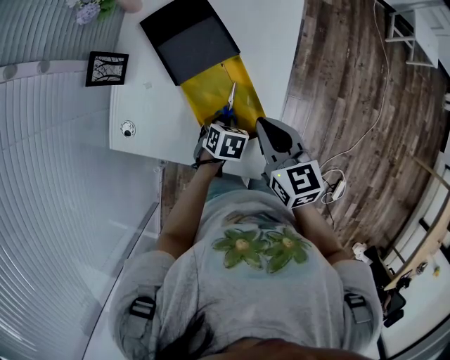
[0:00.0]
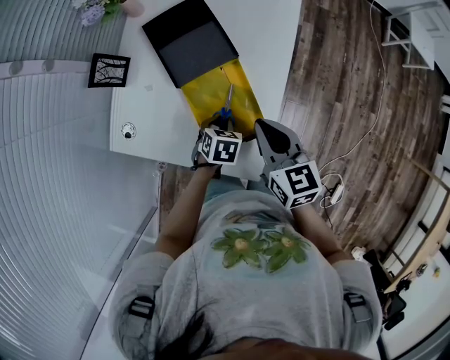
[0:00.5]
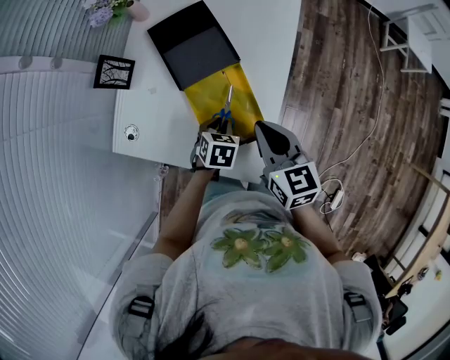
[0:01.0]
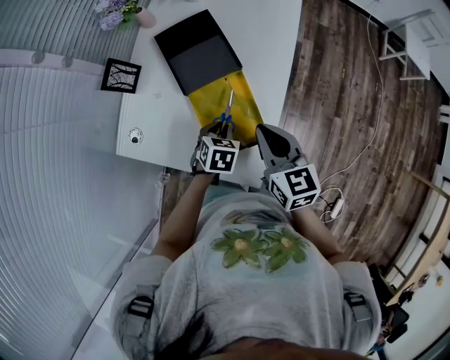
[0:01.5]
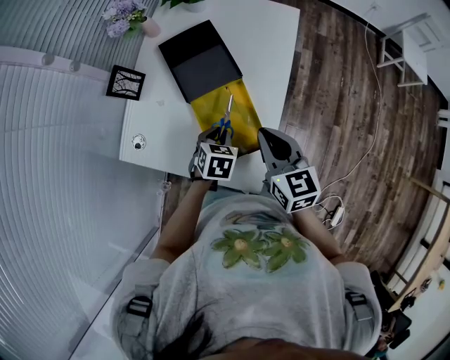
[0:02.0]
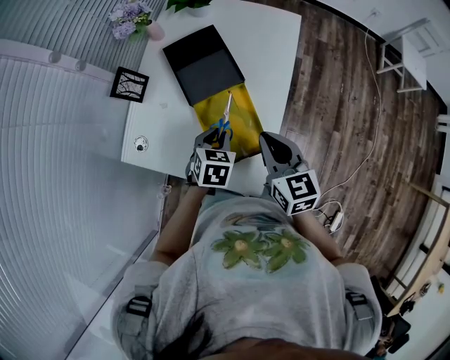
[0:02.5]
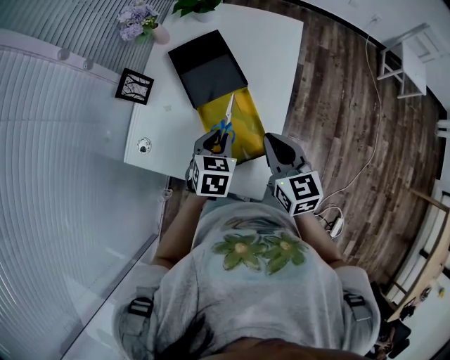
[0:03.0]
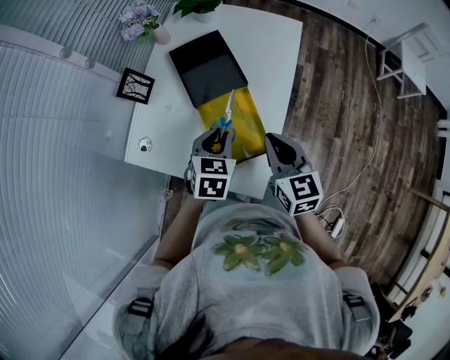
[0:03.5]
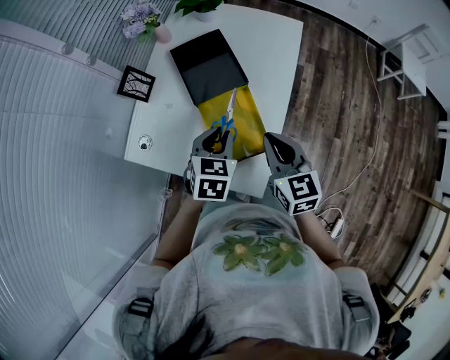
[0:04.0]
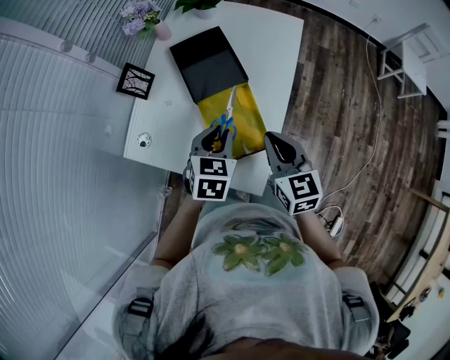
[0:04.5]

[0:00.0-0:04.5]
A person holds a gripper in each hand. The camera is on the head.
0:00.0 to 0:02.0: The left gripper shifts approximately 10 cm upward.
0:02.0 to 0:04.5: The left gripper heads upward, covering approximately 10 cm.

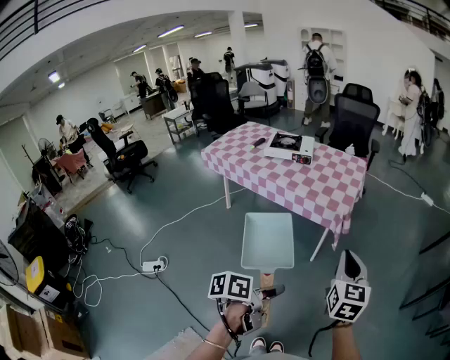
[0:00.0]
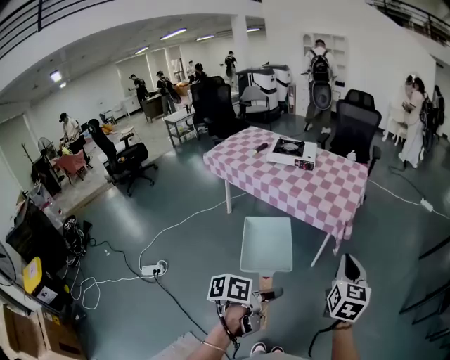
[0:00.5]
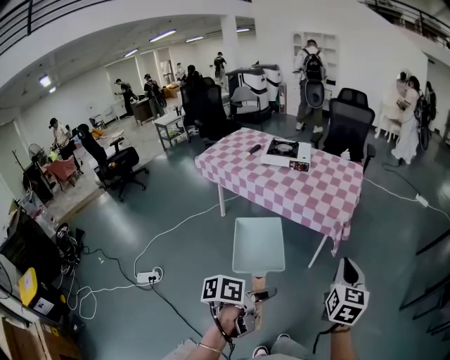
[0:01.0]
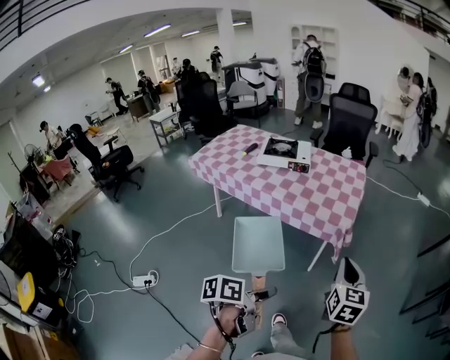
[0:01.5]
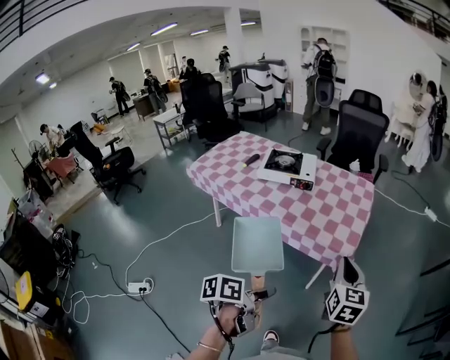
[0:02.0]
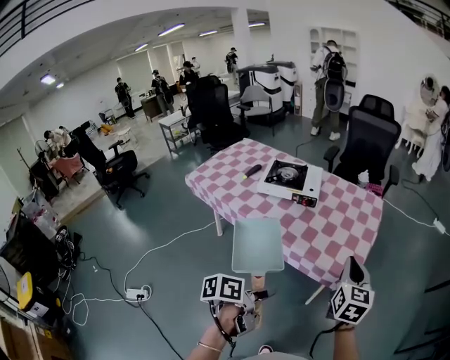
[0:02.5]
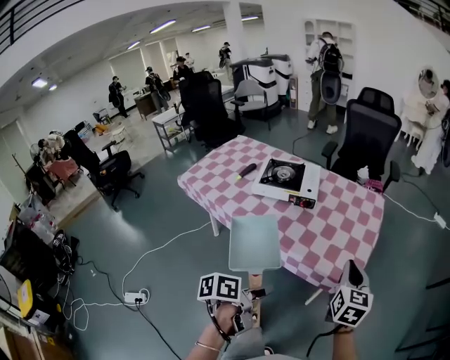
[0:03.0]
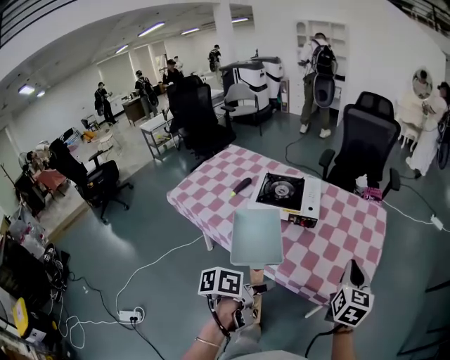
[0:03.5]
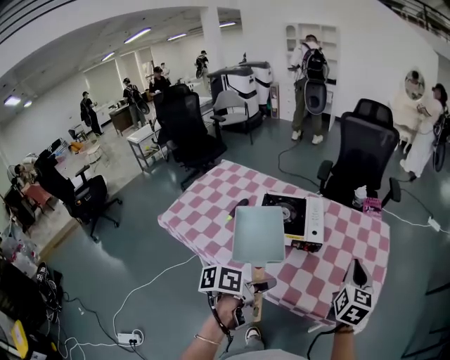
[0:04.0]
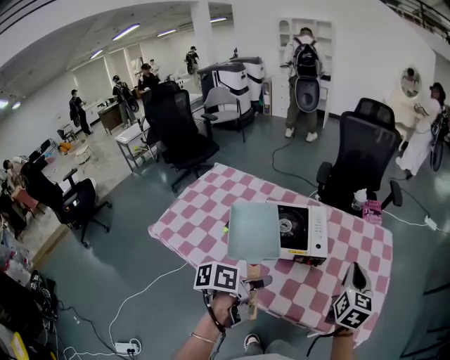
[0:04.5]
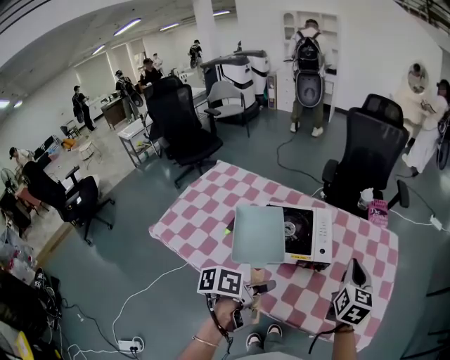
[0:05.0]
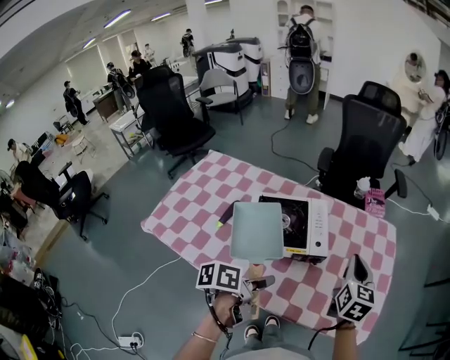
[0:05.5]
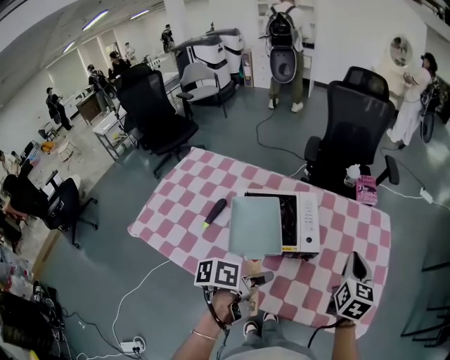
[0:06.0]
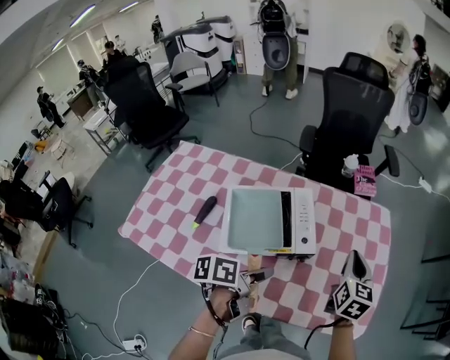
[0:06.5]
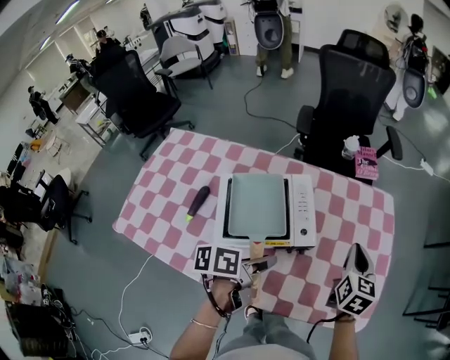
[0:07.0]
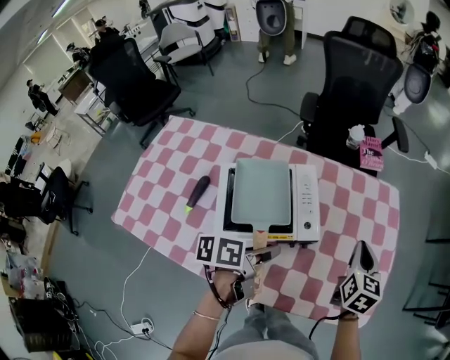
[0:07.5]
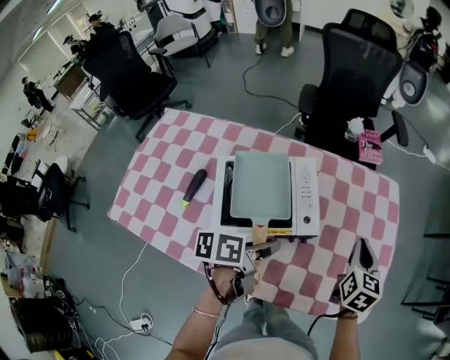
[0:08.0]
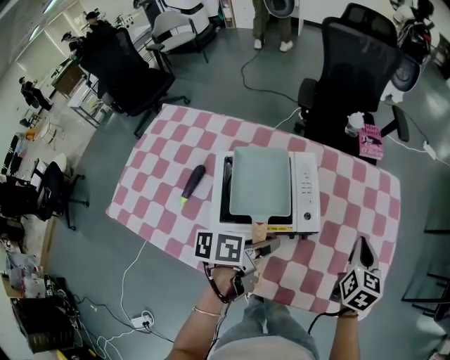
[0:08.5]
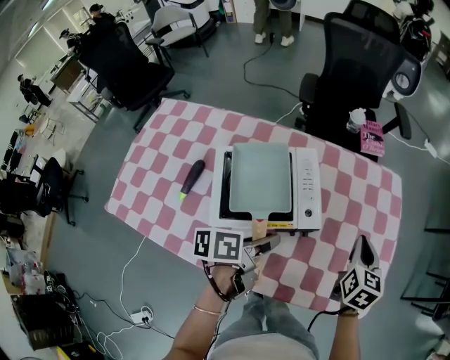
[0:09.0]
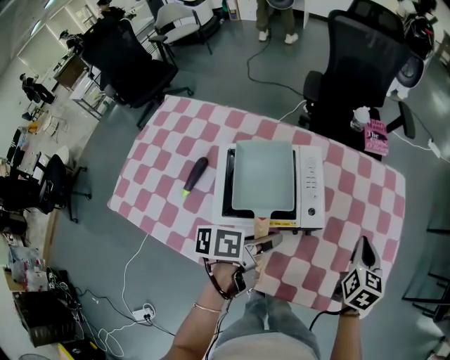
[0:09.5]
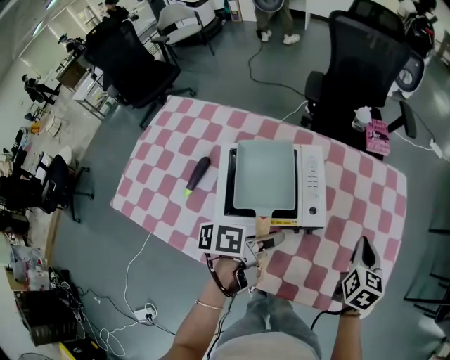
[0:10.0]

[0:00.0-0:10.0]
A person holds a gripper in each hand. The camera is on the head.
0:00.0 to 0:02.0: Both grippers travel together forward and to the left, roughly 25 cm.
0:02.0 to 0:04.0: The grippers both shift forward and to the left by about 40 cm.
0:04.0 to 0:06.0: Both grippers move forward and to the left, some 15 cm.
0:06.0 to 0:08.0: The right gripper goes about 10 cm downward. The left gripper is displaced forward by about 10 cm.
0:08.0 to 0:10.0: There are only small adjustments of the grippers.

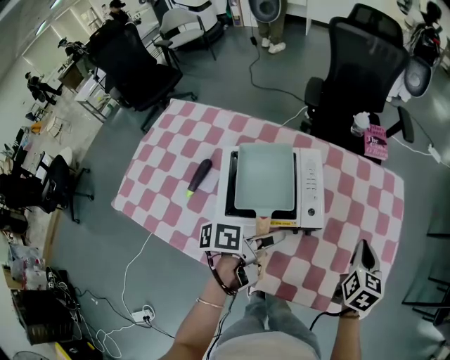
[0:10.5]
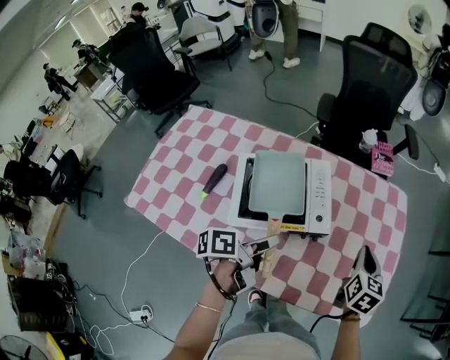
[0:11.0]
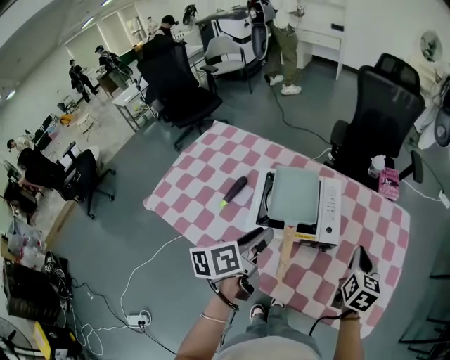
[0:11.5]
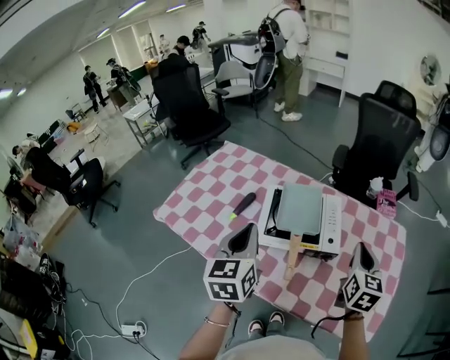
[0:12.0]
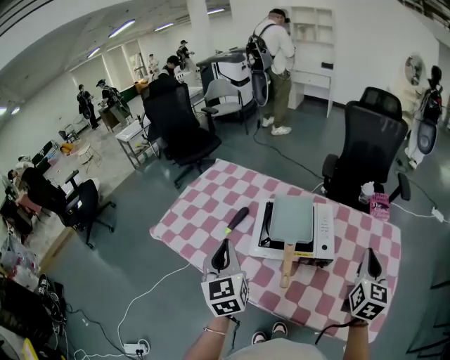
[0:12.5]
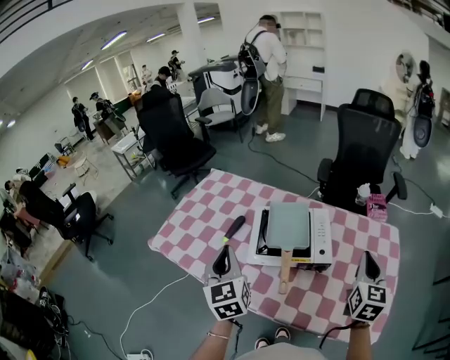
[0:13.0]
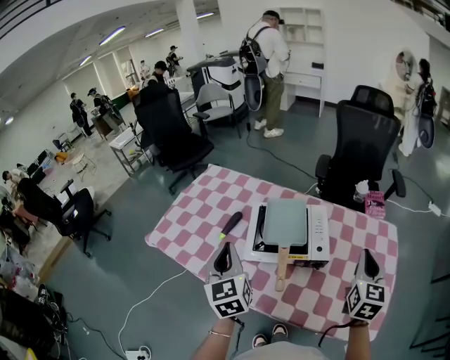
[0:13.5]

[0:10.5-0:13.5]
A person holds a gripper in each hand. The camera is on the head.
0:10.5 to 0:12.0: The left gripper goes about 20 cm upward, changes its angle by roughly 80 degrees, and closes up. The right gripper goes approximately 10 cm upward, and turns by roughly 20 degrees.
0:12.0 to 0:13.5: The right gripper ends up roughly 5 cm from where it was.

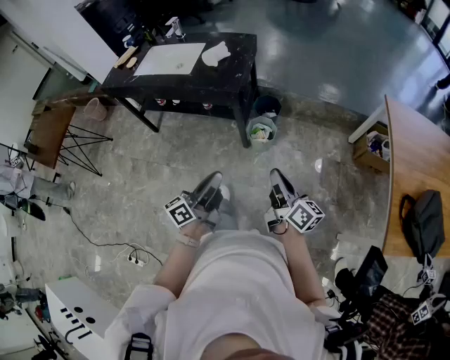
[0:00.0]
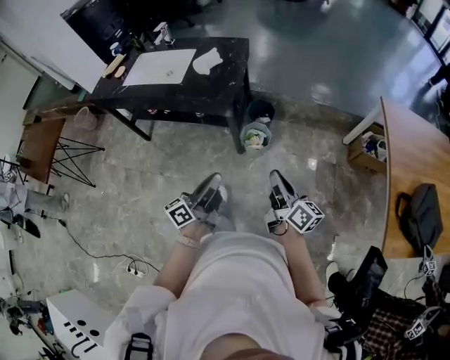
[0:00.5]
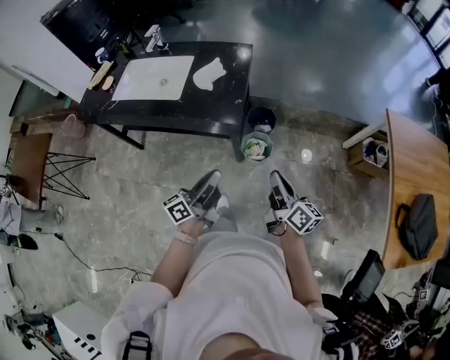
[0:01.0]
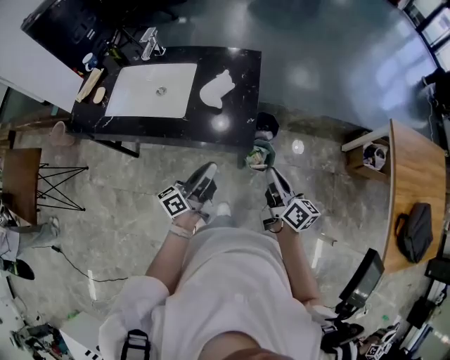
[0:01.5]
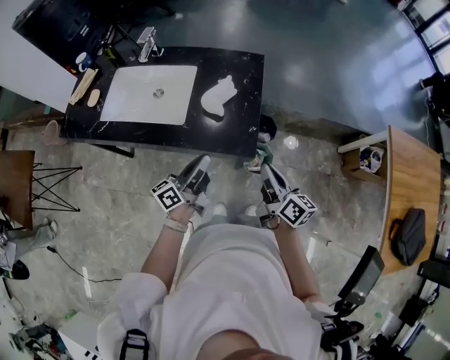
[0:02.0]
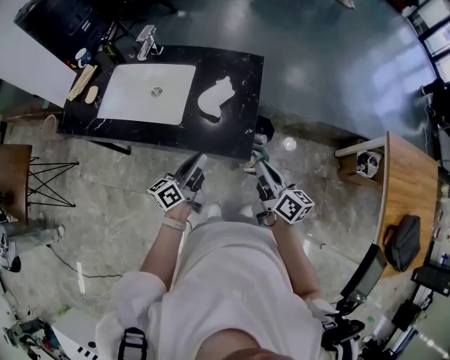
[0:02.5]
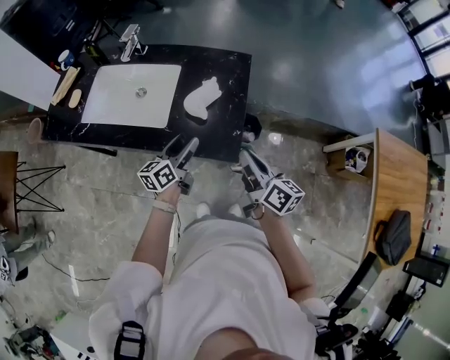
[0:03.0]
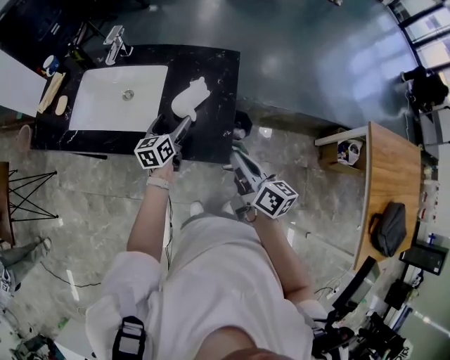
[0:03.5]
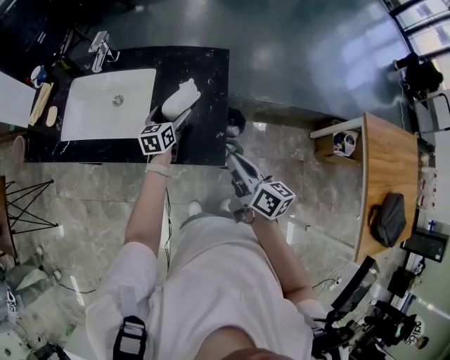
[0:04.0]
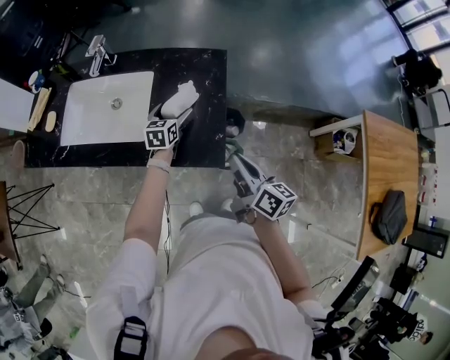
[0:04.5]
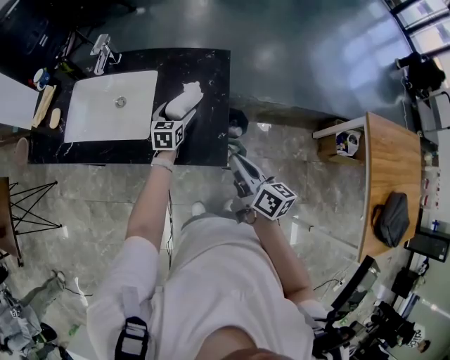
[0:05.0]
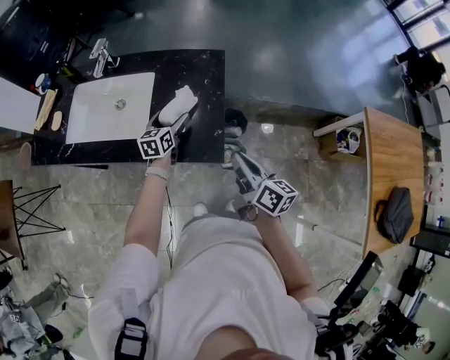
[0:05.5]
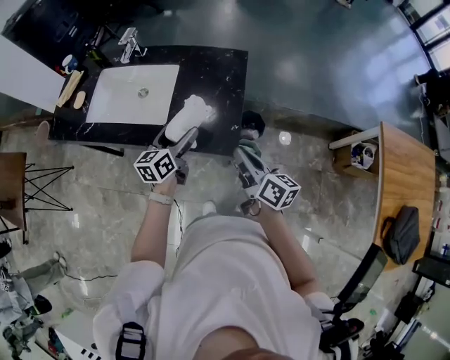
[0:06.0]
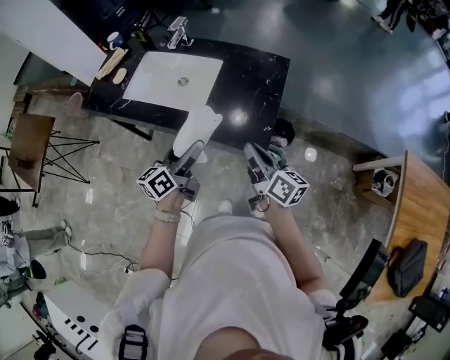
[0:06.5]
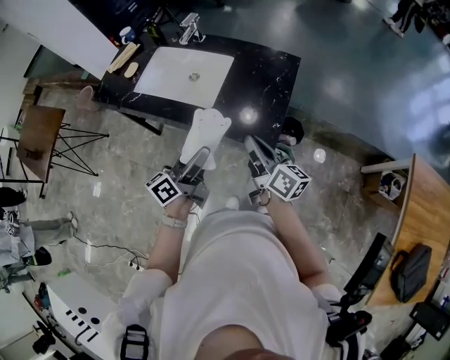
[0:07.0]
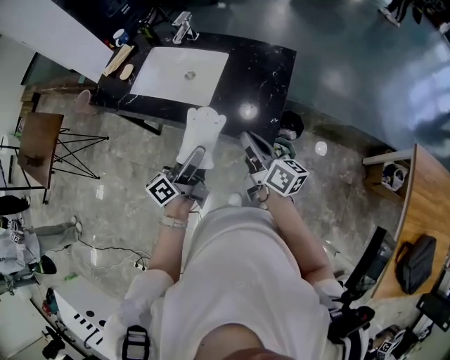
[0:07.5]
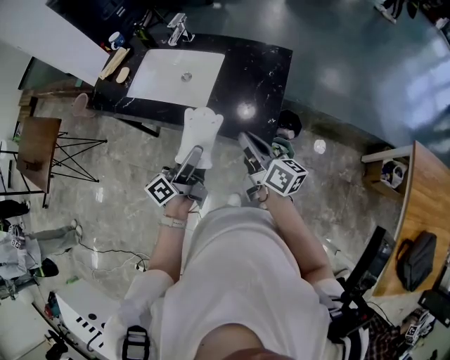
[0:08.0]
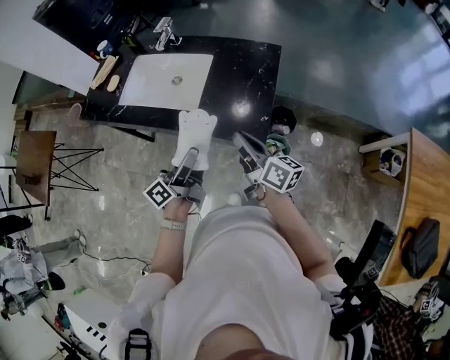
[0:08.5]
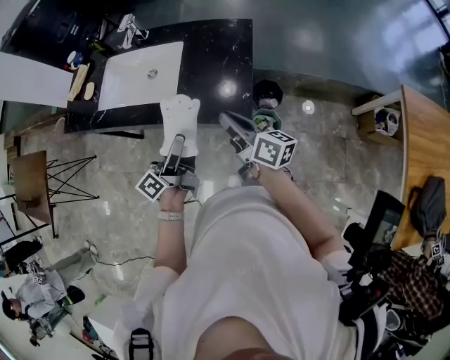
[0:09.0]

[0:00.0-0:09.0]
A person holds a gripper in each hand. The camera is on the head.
0:00.0 to 0:02.0: The two grippers travel together, forward and to the left, approximately 50 cm.
0:02.0 to 0:04.5: The right gripper is displaced forward by about 10 cm. Meanwhile the left gripper moves forward and downward, about 30 cm, tips its fingers downward by roughly 40 degrees, and opens up.
0:04.5 to 0:07.0: The right gripper shifts approximately 10 cm to the left, and turns by approximately 20 degrees, while the left gripper travels backward and upward by about 35 cm, and tips its fingers upward by about 40 degrees.
0:07.0 to 0:09.0: There are only small adjustments of the grippers.
